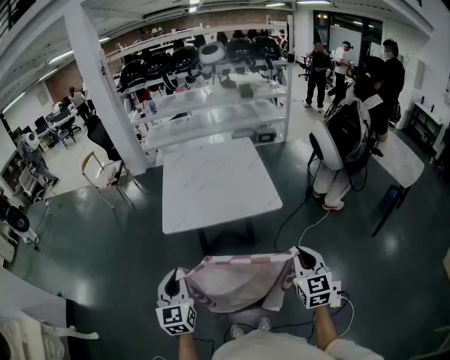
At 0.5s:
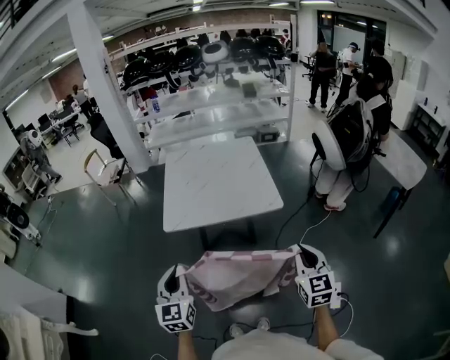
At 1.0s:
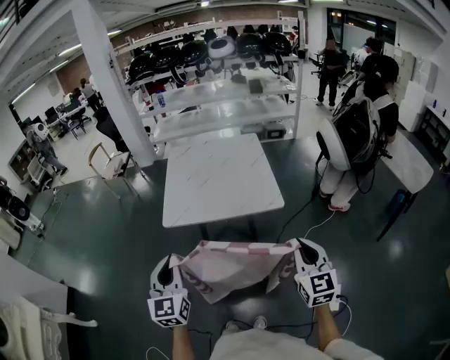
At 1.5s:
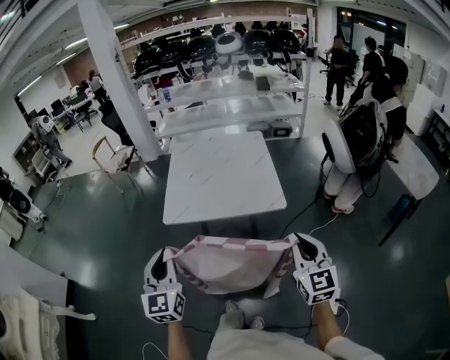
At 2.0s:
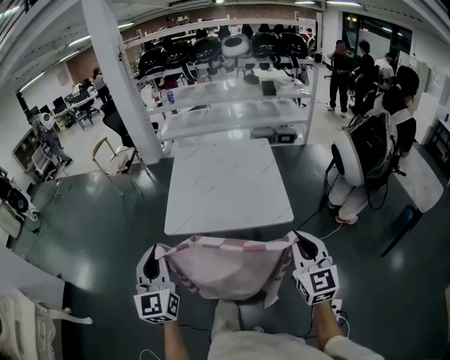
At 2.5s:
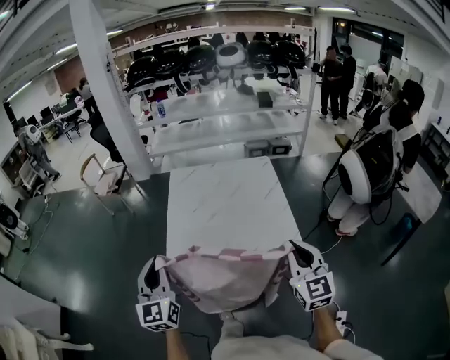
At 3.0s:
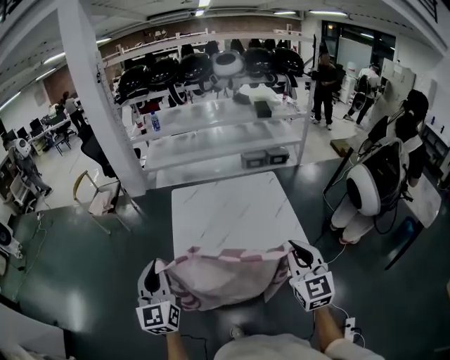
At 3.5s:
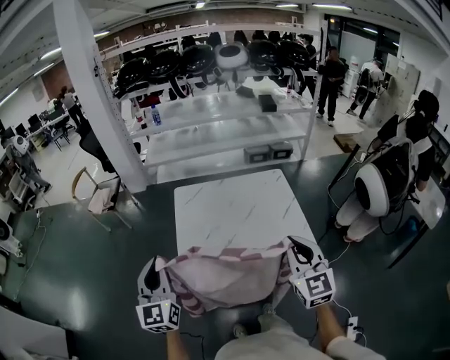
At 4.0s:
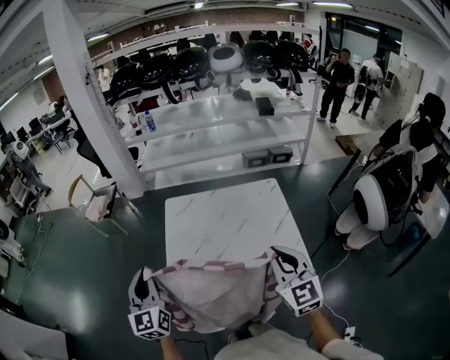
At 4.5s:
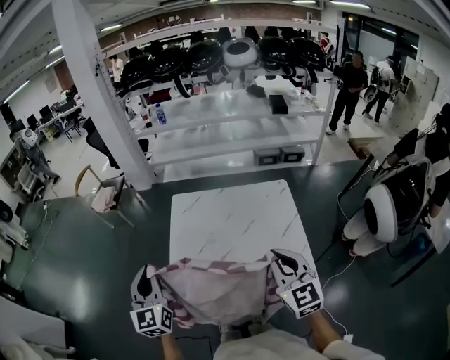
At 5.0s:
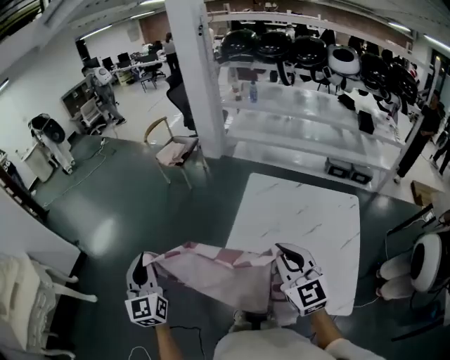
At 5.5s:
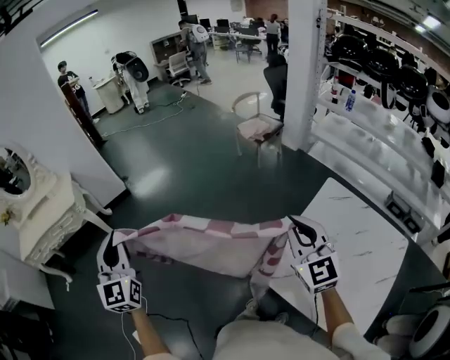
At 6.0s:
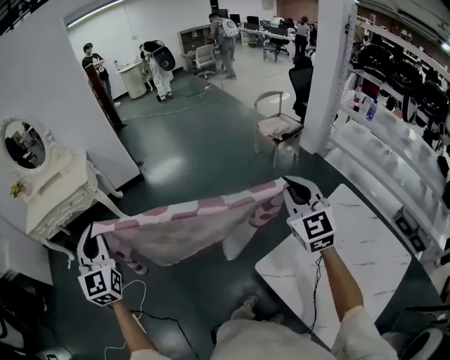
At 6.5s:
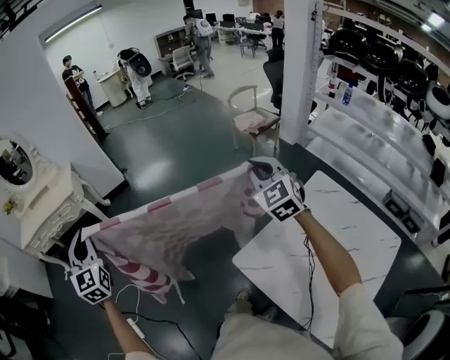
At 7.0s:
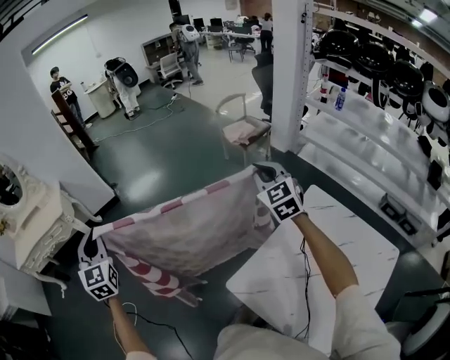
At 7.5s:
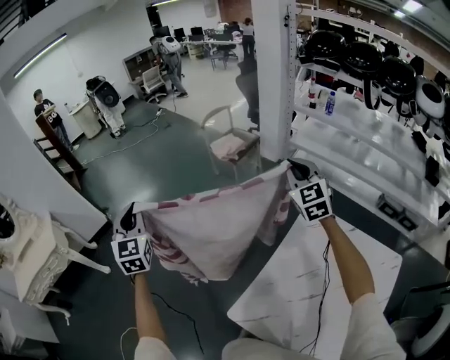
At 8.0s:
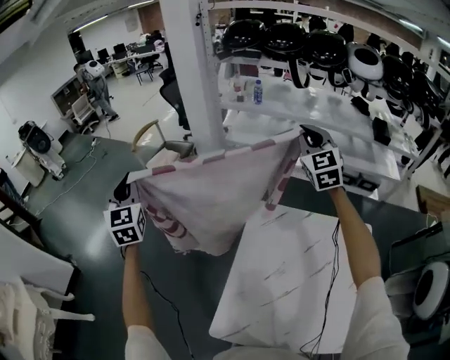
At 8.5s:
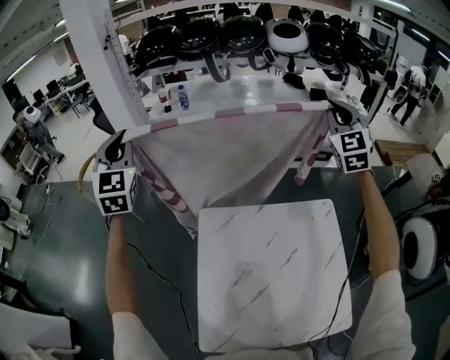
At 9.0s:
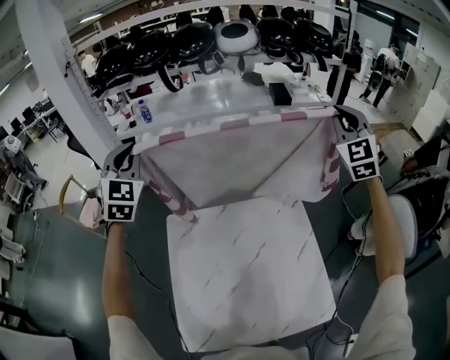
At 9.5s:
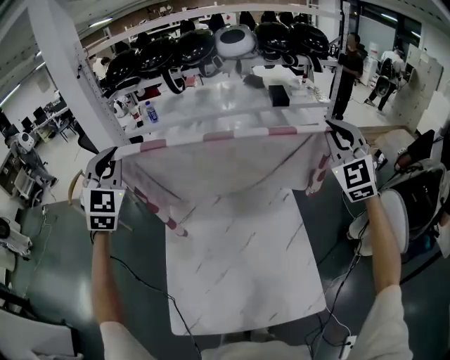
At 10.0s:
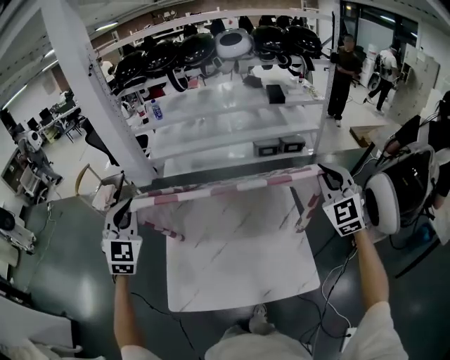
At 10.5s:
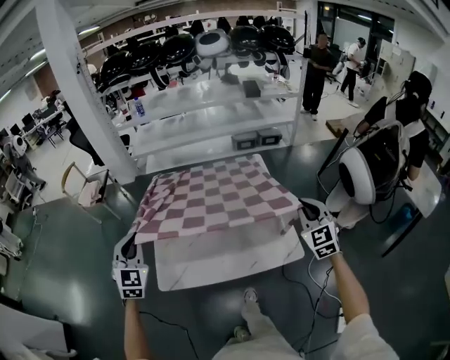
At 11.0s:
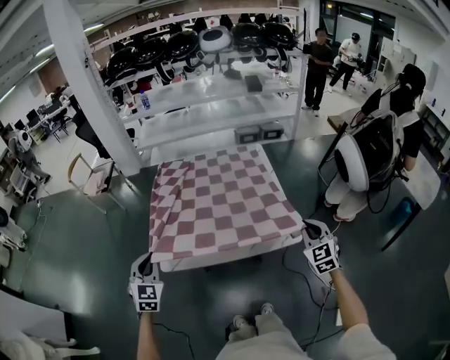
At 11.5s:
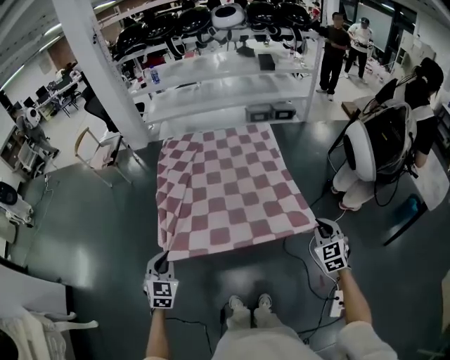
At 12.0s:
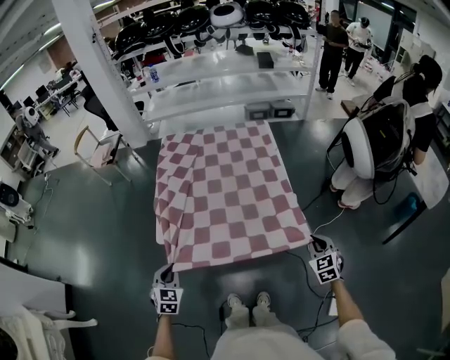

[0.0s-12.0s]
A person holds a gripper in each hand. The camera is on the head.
0.0s to 2.0s: Both grippers move forward and upward, about 15 cm.
2.0s to 4.0s: The pair of grippers is taken forward, some 40 cm.
4.0s to 6.0s: The right gripper moves approximately 50 cm, and changes its angle by roughly 60 degrees. The left gripper ends up roughly 60 cm from where it was, and swivels approximately 70 degrees.
6.0s to 8.0s: Both grippers are carried about 70 cm. The left gripper swivels approximately 40 degrees. Meanwhile the right gripper changes its angle by about 50 degrees.
8.0s to 10.0s: The pair of grippers is taken some 50 cm. The left gripper rotates approximately 40 degrees; the right gripper rotates about 20 degrees.
10.0s to 12.0s: The pair of grippers is taken backward, some 40 cm. Both grippers move downward, approximately 35 cm. The right gripper tips its fingers downward by about 30 degrees. The left gripper turns by some 30 degrees.

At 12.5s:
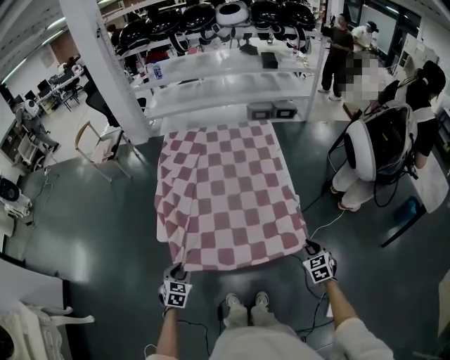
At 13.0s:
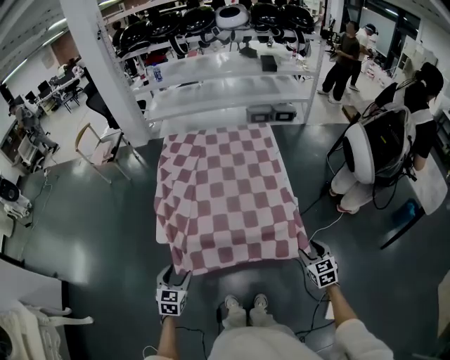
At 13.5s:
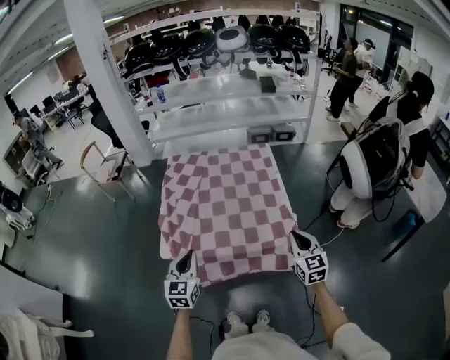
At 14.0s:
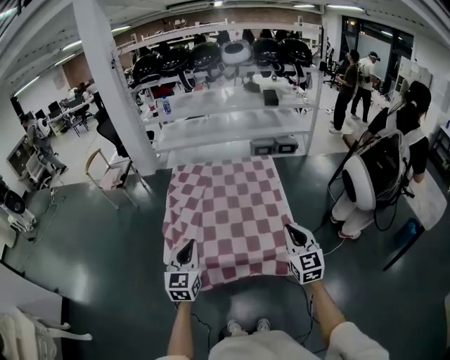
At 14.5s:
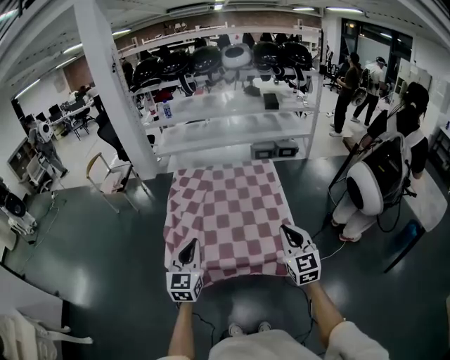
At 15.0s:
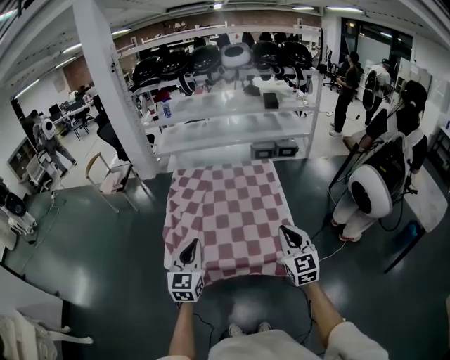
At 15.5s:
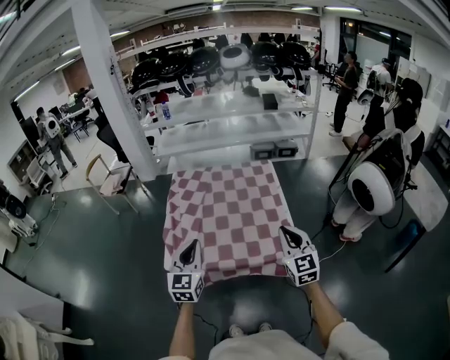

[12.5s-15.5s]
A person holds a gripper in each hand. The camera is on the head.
12.5s to 14.0s: Both grippers move upward, approximately 25 cm. The left gripper points its fingers about 40 degrees further upward, and opens, then closes once more. The right gripper tips its fingers upward by about 30 degrees, and opens, then closes once more.
14.0s to 15.5s: The grippers move only a little.

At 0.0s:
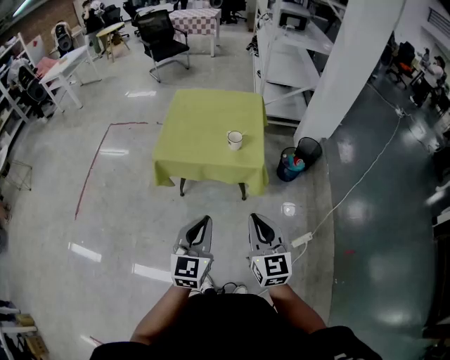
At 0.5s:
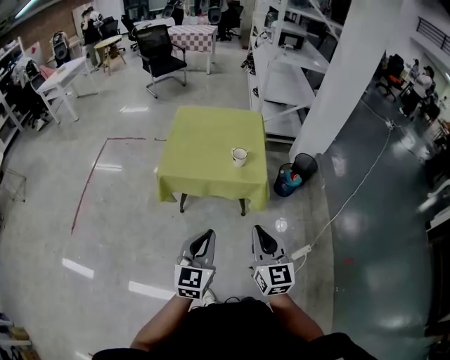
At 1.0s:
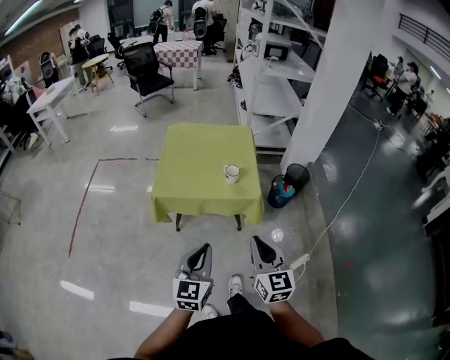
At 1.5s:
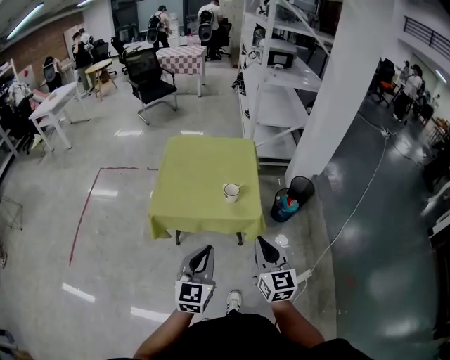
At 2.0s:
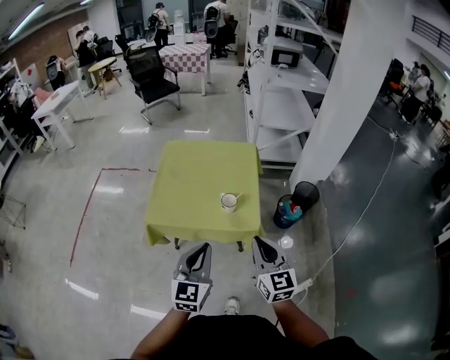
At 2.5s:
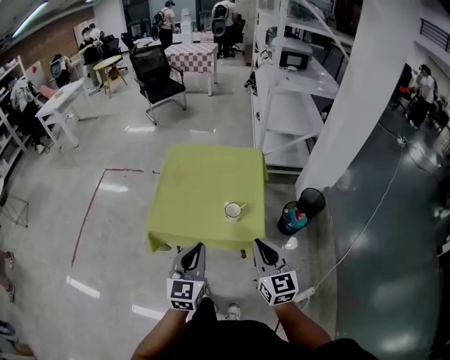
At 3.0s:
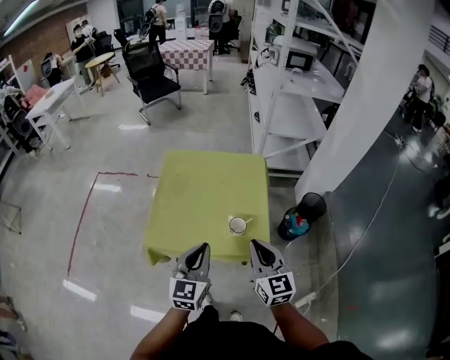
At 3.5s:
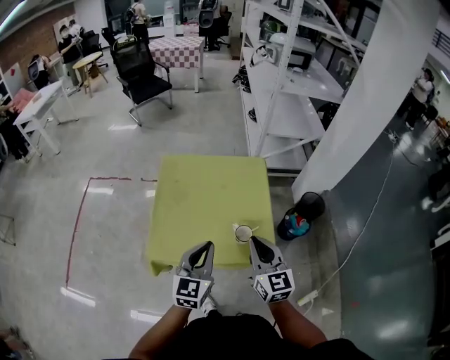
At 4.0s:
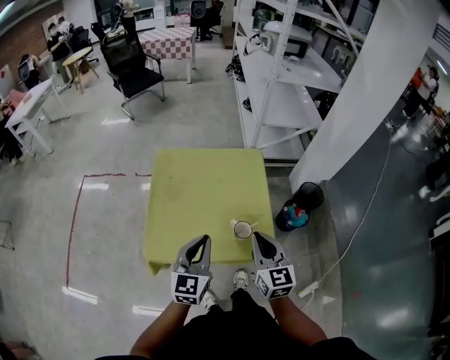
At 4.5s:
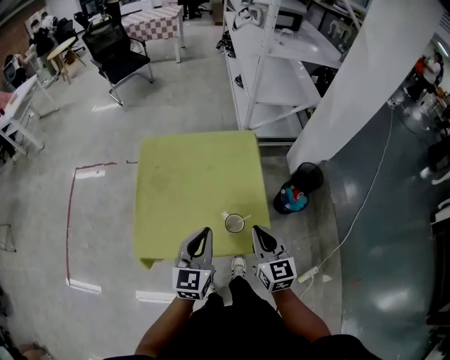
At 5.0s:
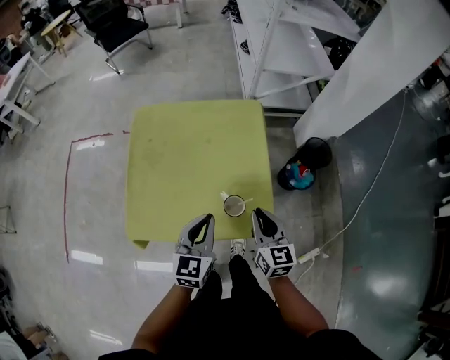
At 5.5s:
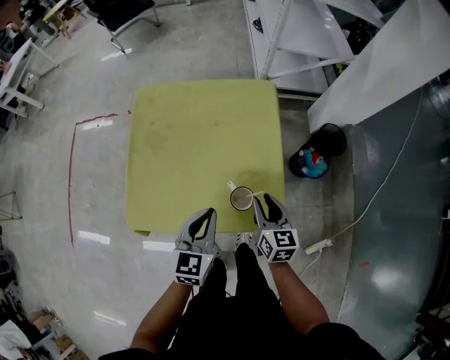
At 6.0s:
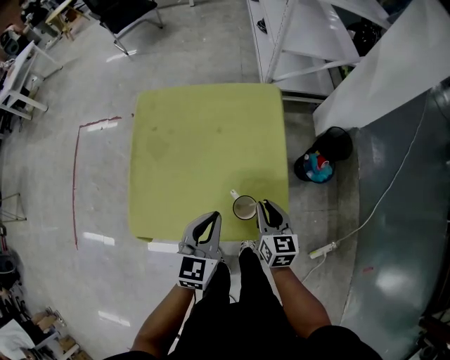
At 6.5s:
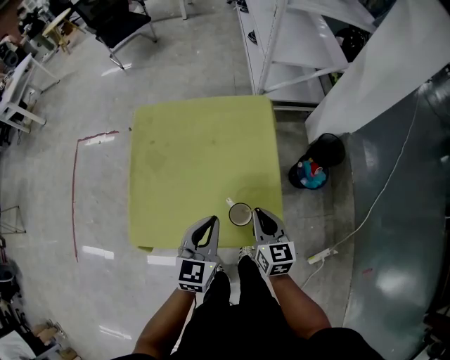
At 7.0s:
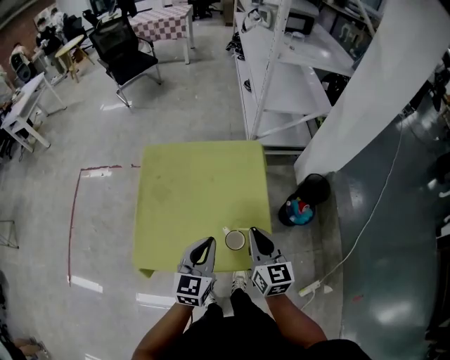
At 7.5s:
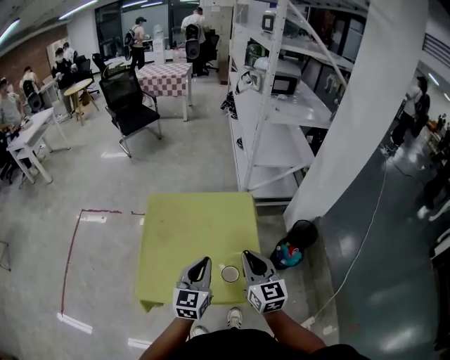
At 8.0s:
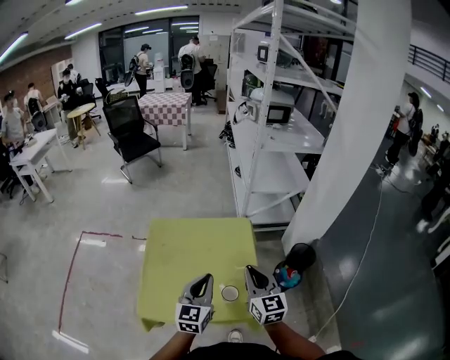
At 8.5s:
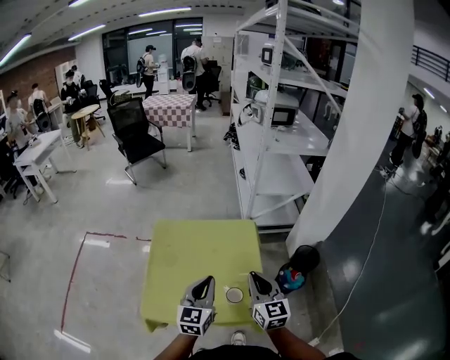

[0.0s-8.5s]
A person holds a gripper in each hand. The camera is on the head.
0.0s to 2.0s: The grippers both shift forward by some 20 cm.
2.0s to 4.0s: Both grippers travel together forward, approximately 20 cm.
4.0s to 6.5s: The right gripper heads downward and forward, covering about 20 cm, and opens and closes again. The left gripper moves downward, forward and to the right, approximately 15 cm.
6.5s to 8.5s: The grippers both shift upward by some 20 cm. The right gripper rotates about 20 degrees.

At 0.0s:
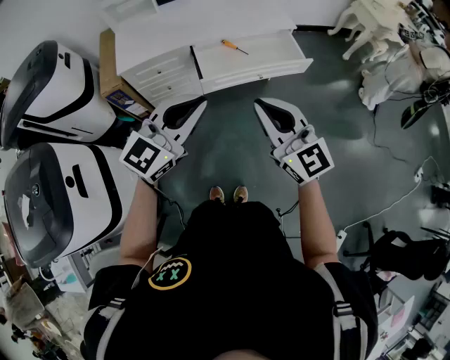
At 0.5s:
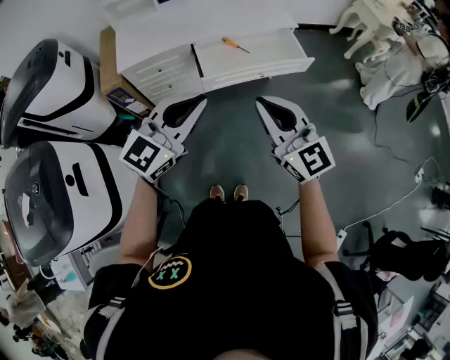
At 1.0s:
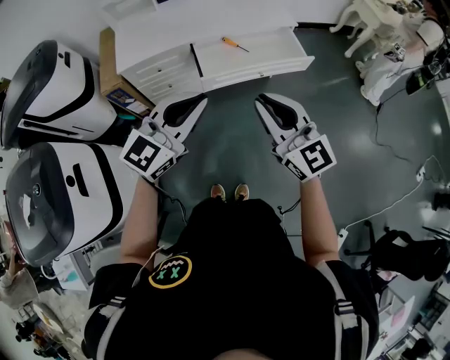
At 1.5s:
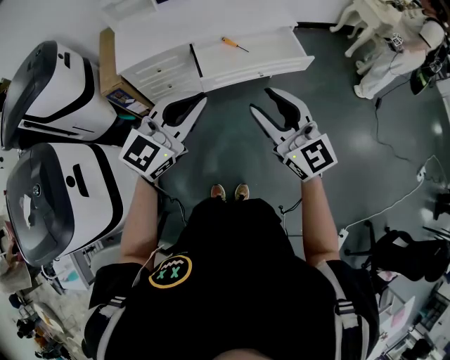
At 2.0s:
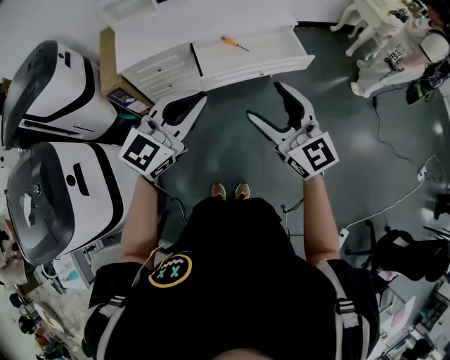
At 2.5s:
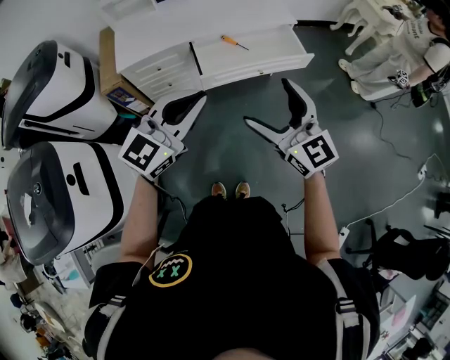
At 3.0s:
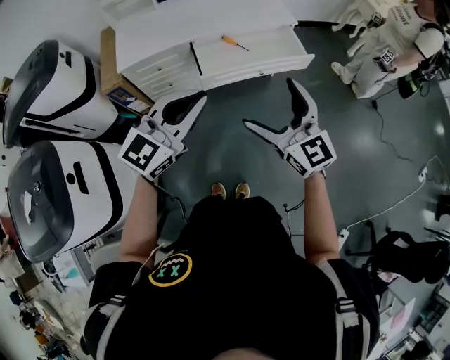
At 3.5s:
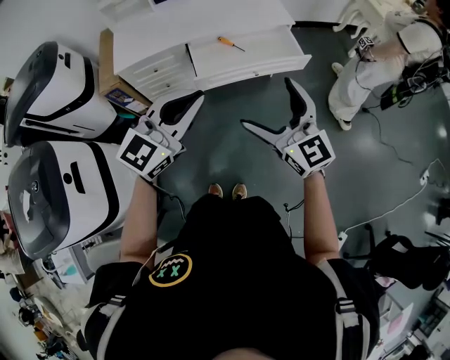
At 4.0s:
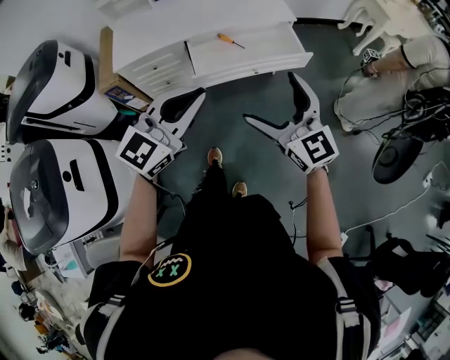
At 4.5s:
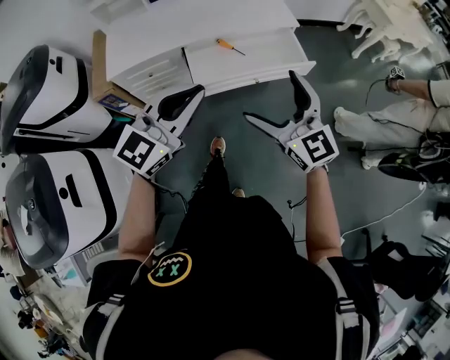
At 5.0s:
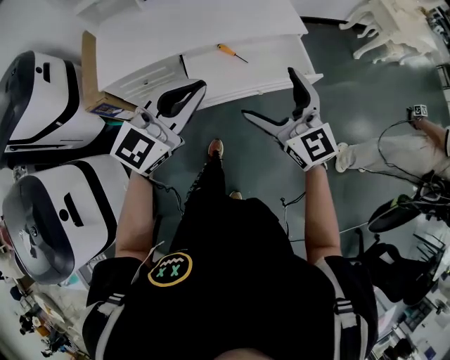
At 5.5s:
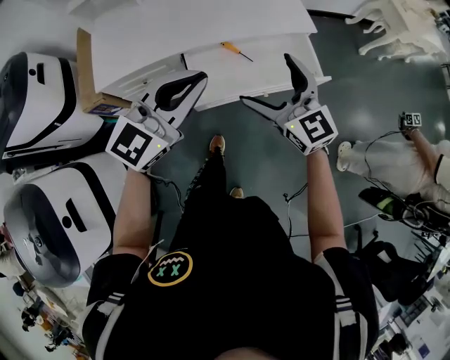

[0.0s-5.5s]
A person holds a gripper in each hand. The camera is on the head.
0.0s to 2.0s: The right gripper opens up.
2.0s to 3.5s: The right gripper changes place by some 5 cm.
3.5s to 5.5s: Both grippers travel together forward, roughly 25 cm.
